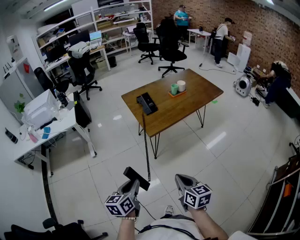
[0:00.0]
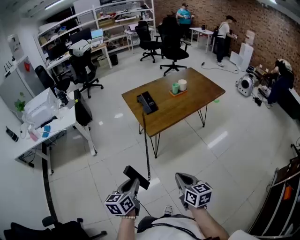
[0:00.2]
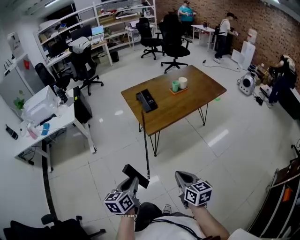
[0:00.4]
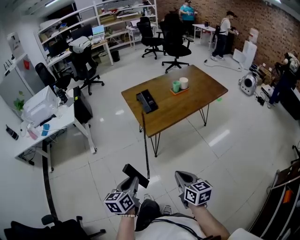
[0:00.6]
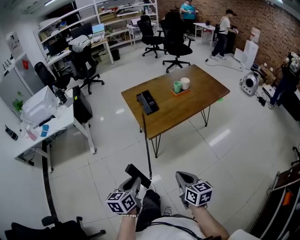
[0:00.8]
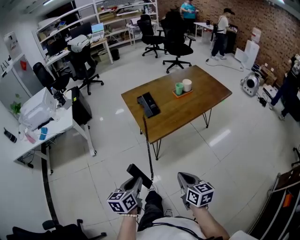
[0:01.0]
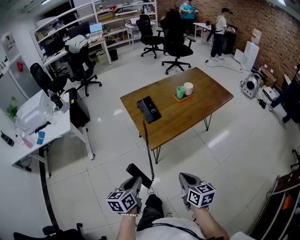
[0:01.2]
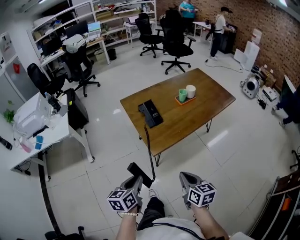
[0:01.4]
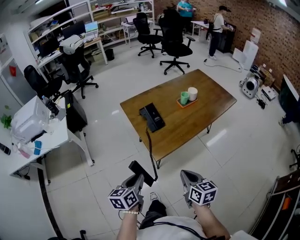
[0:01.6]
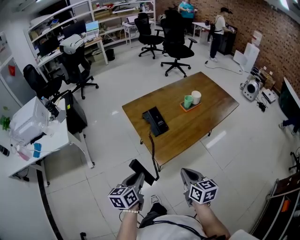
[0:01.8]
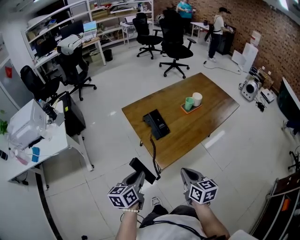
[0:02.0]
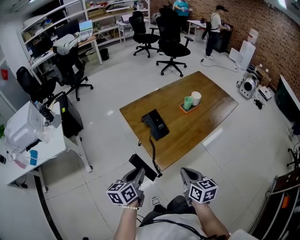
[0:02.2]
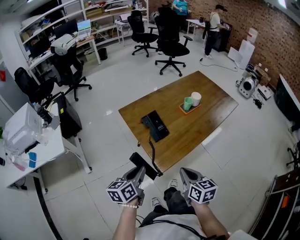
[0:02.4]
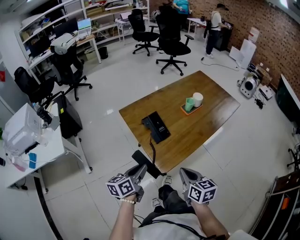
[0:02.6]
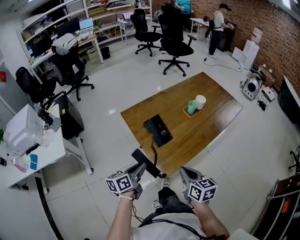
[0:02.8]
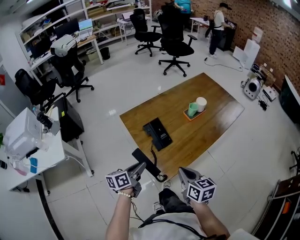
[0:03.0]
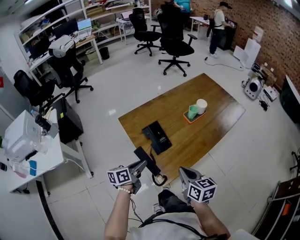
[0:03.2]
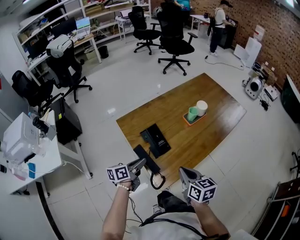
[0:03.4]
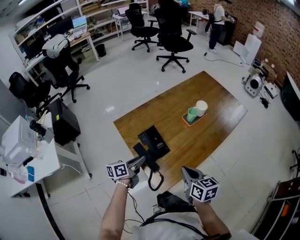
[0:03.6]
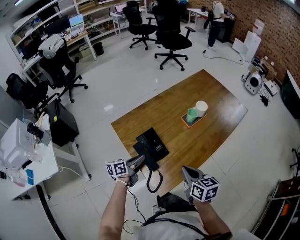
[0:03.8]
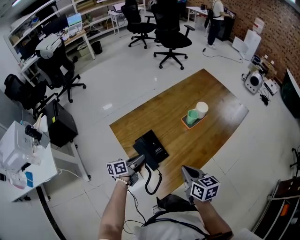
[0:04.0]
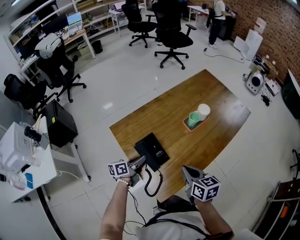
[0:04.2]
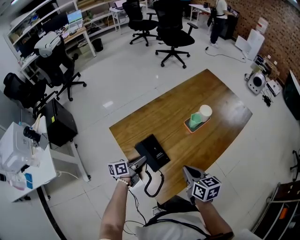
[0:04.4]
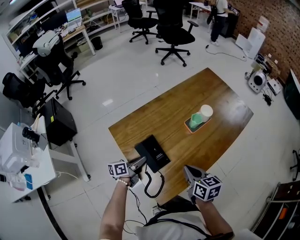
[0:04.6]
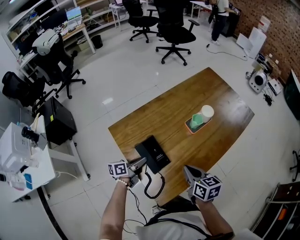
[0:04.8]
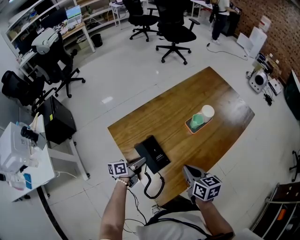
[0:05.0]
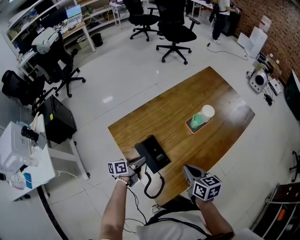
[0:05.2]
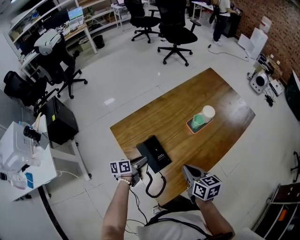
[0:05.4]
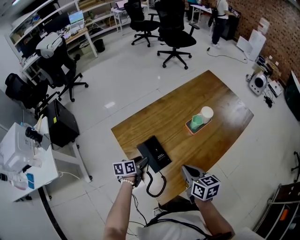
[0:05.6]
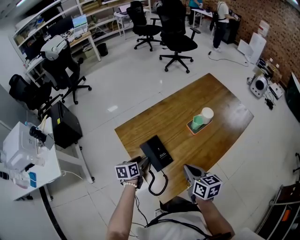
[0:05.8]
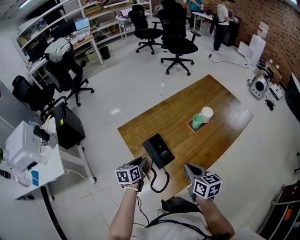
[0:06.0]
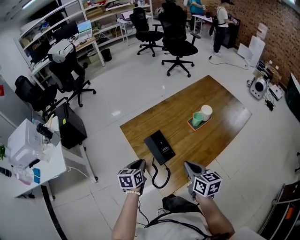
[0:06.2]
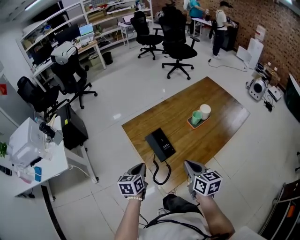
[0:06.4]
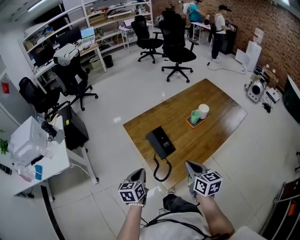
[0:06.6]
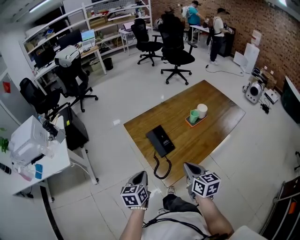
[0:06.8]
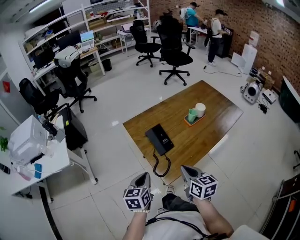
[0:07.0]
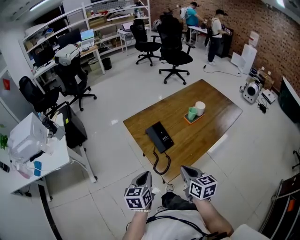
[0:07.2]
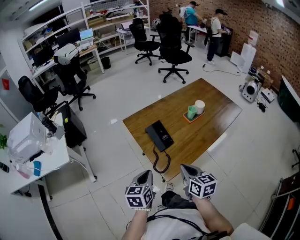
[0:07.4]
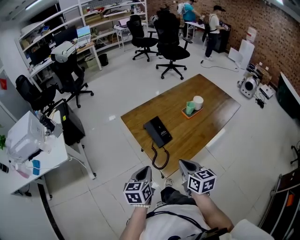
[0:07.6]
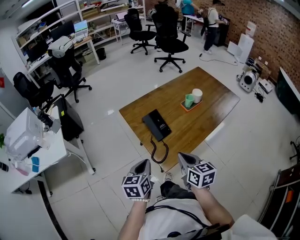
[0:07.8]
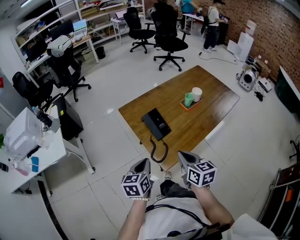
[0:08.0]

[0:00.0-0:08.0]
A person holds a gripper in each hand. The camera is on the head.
0:00.0 to 0:01.6: The grippers both shift forward by roughly 25 cm.
0:01.6 to 0:03.2: Both grippers travel together forward, about 20 cm. The left gripper swivels some 20 degrees.
0:03.2 to 0:04.8: The right gripper travels forward by about 15 cm, while the left gripper heads forward and downward, covering some 15 cm.
0:04.8 to 0:06.4: The left gripper heads backward and upward, covering about 15 cm, turns by some 40 degrees, and opens, then closes once more. Meanwhile the right gripper moves backward and upward, roughly 10 cm.
0:06.4 to 0:08.0: The two grippers go approximately 10 cm backward.

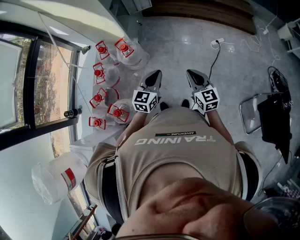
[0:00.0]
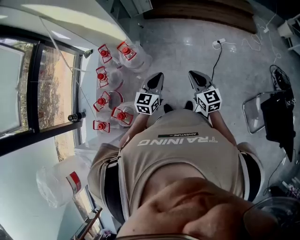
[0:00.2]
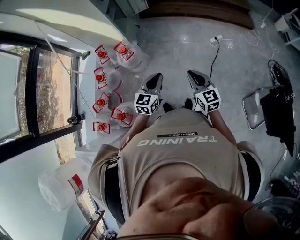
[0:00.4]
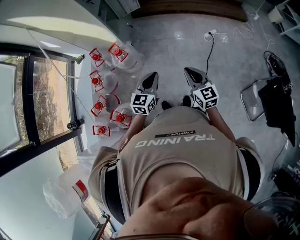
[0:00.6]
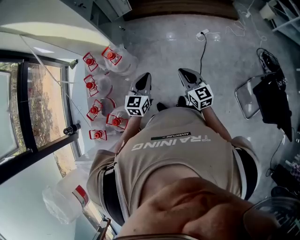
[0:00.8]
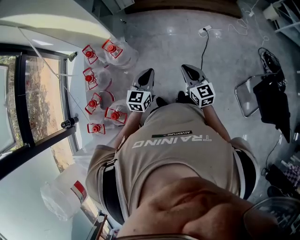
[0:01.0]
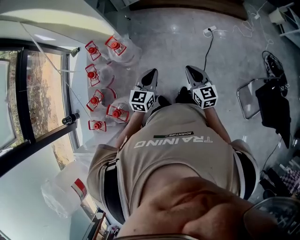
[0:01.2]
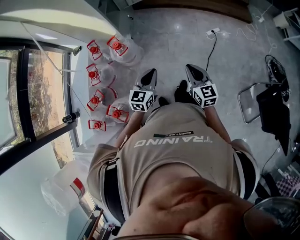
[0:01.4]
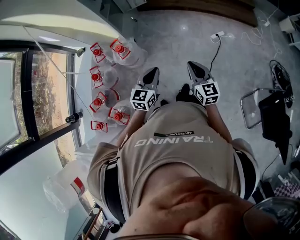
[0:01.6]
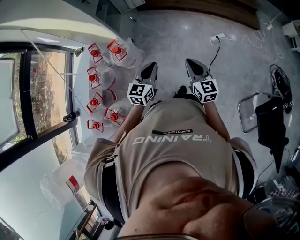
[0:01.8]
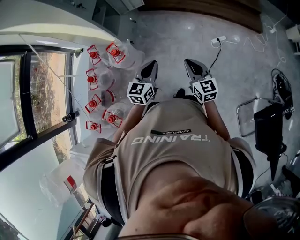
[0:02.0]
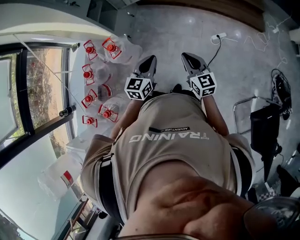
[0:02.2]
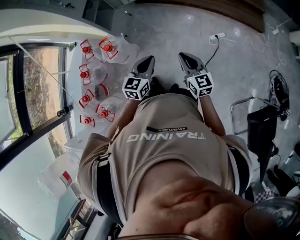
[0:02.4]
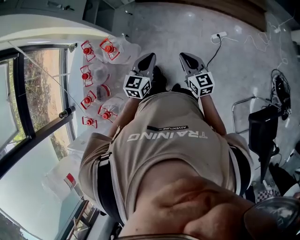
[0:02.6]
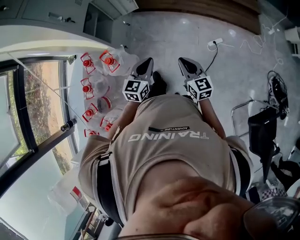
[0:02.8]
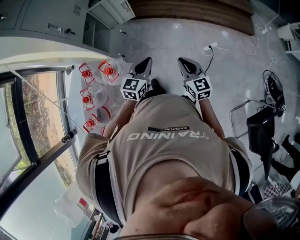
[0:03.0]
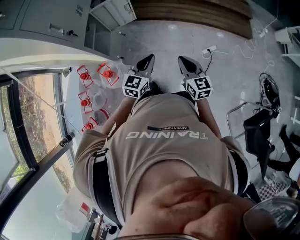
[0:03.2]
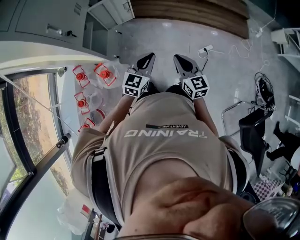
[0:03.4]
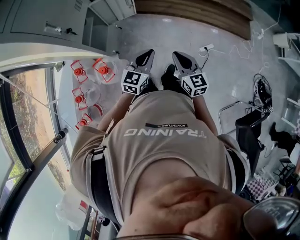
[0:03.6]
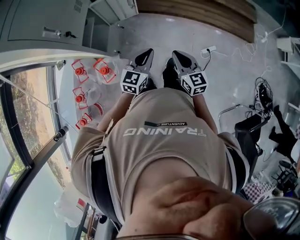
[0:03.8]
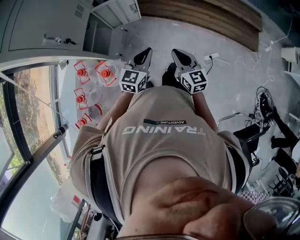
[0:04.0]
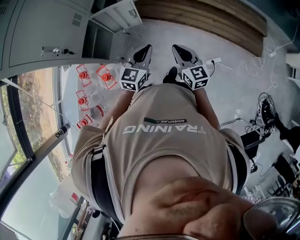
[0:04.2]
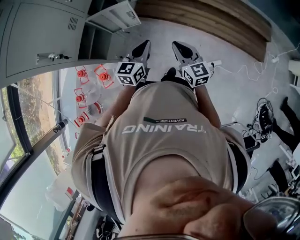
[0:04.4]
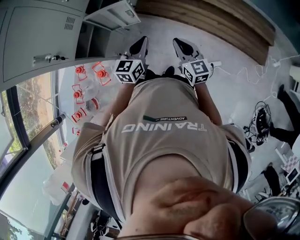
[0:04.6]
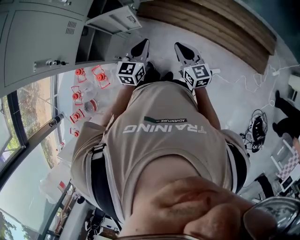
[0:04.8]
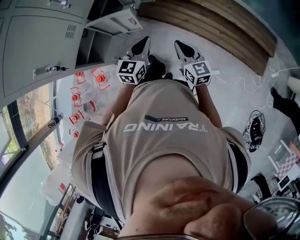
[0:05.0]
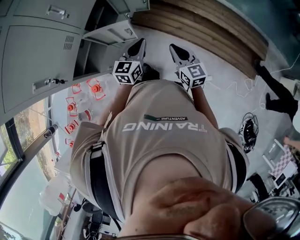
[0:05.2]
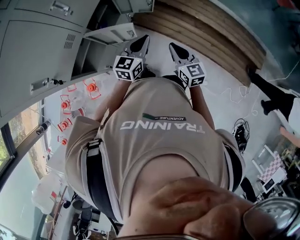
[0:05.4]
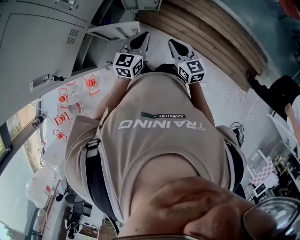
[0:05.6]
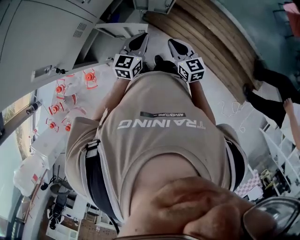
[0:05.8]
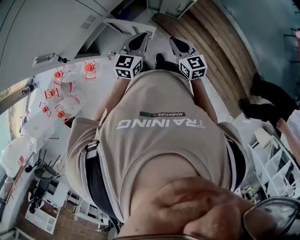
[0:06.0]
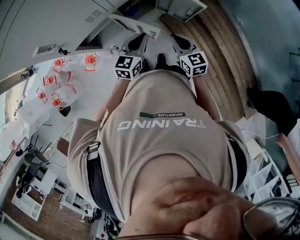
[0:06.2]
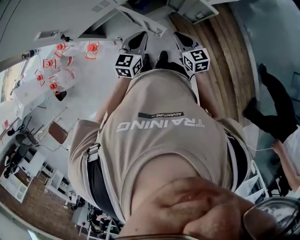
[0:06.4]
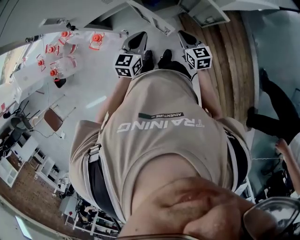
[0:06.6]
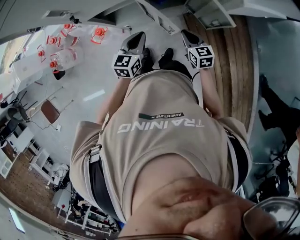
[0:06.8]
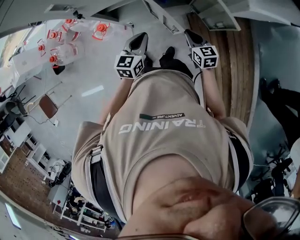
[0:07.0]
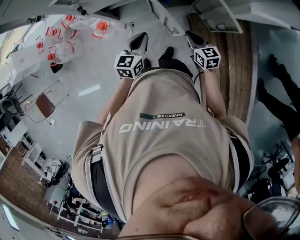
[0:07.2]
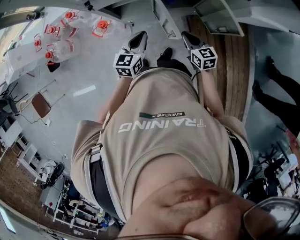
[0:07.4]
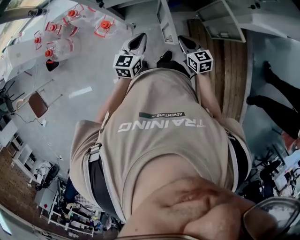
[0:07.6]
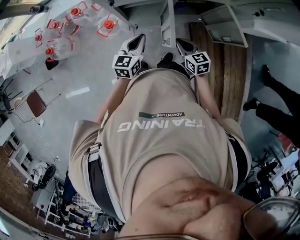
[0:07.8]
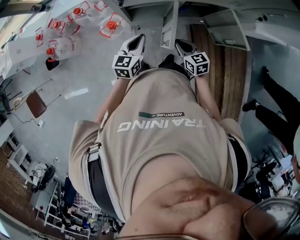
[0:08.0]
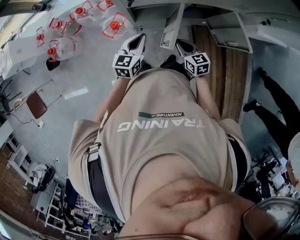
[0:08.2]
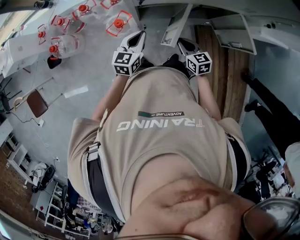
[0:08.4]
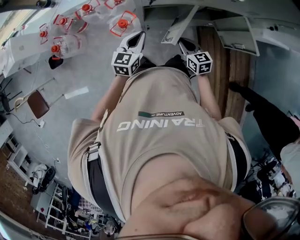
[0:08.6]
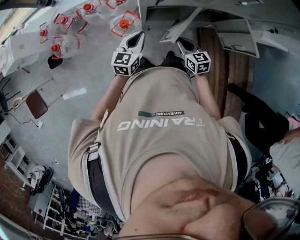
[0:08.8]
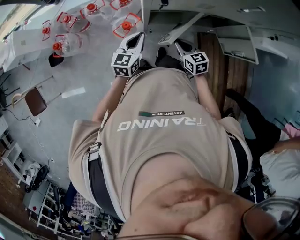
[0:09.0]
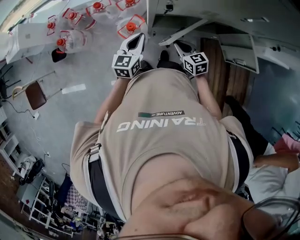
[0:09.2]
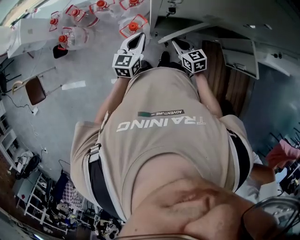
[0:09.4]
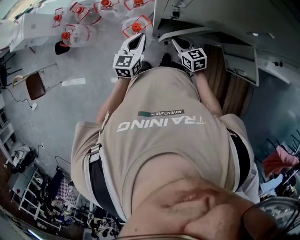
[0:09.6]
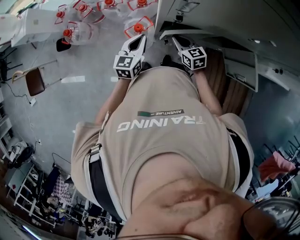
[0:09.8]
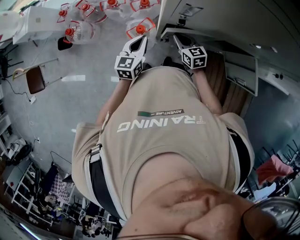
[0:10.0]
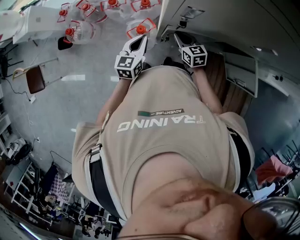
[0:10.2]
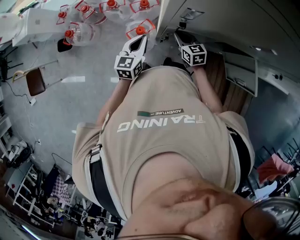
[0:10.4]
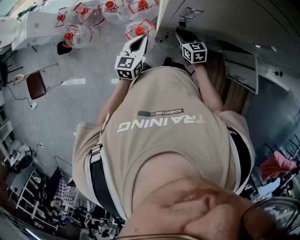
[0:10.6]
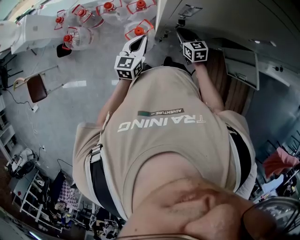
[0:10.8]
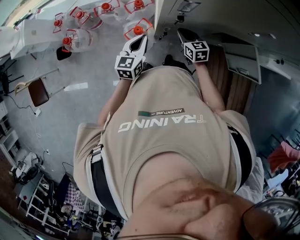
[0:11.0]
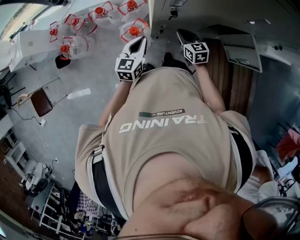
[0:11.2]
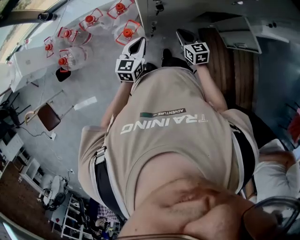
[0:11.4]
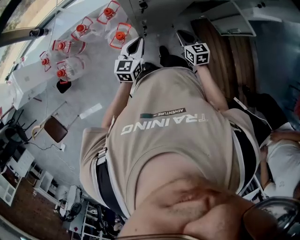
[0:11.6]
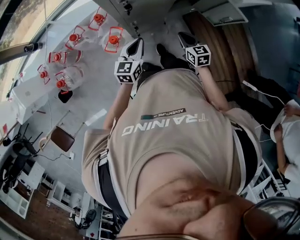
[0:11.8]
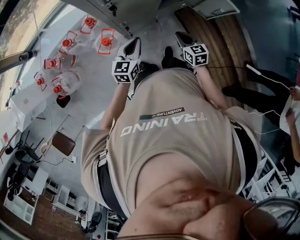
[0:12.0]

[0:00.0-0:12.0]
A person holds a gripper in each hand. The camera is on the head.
0:00.0 to 0:01.6: The grippers both shift forward by some 10 cm.
0:01.6 to 0:03.0: Both grippers move forward, roughly 25 cm.
0:03.0 to 0:04.4: The two grippers go approximately 30 cm forward.
0:04.4 to 0:06.0: The right gripper moves some 30 cm, and rotates about 30 degrees. The left gripper changes place by some 25 cm, and swivels about 30 degrees.
0:06.0 to 0:07.6: The right gripper moves roughly 15 cm, and swivels some 40 degrees; the left gripper changes place by about 20 cm, and rotates approximately 40 degrees.
0:07.6 to 0:09.0: Both grippers move to the left, roughly 20 cm.
0:09.0 to 0:10.4: The left gripper goes about 5 cm forward. The right gripper moves forward, roughly 15 cm.
0:10.4 to 0:12.0: The right gripper changes place by roughly 25 cm, and turns by some 40 degrees; the left gripper ends up about 15 cm from where it was, and rotates some 30 degrees.

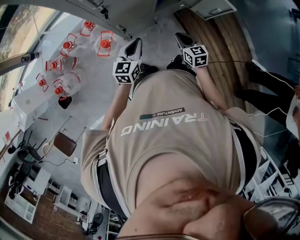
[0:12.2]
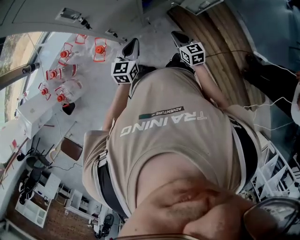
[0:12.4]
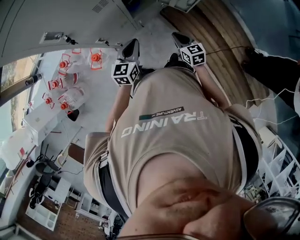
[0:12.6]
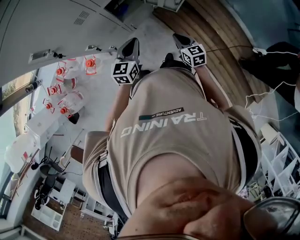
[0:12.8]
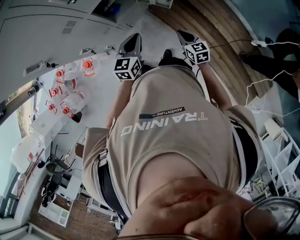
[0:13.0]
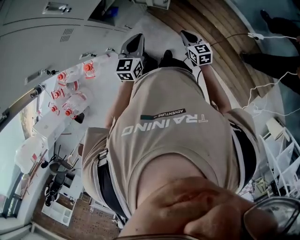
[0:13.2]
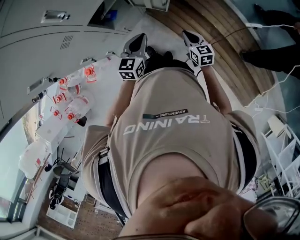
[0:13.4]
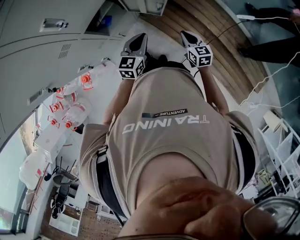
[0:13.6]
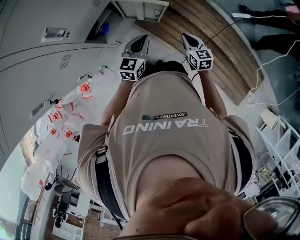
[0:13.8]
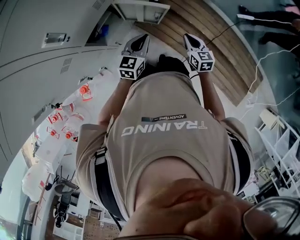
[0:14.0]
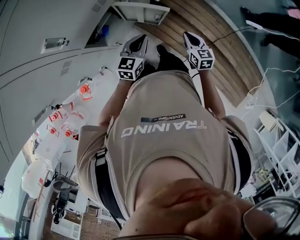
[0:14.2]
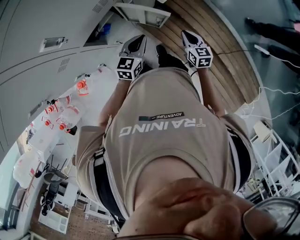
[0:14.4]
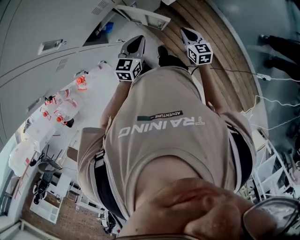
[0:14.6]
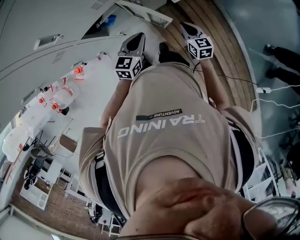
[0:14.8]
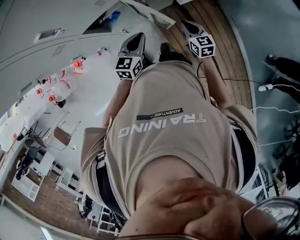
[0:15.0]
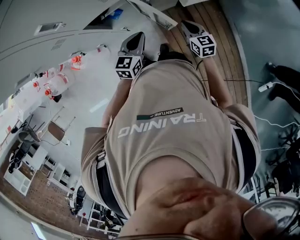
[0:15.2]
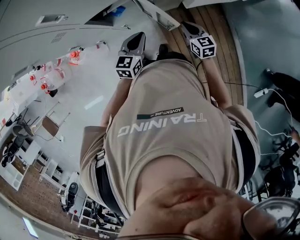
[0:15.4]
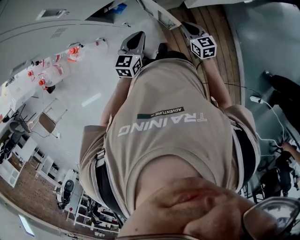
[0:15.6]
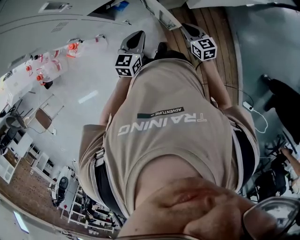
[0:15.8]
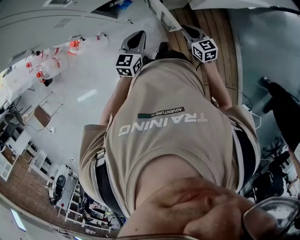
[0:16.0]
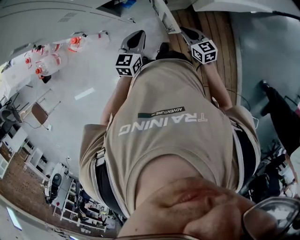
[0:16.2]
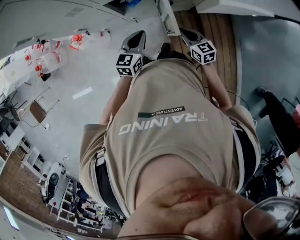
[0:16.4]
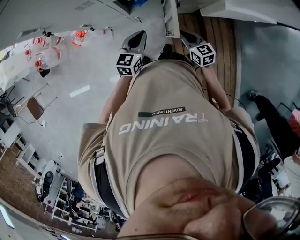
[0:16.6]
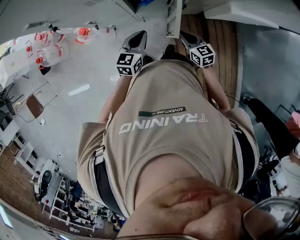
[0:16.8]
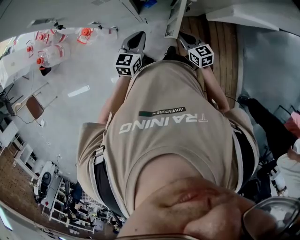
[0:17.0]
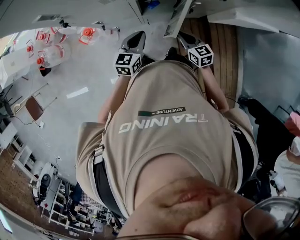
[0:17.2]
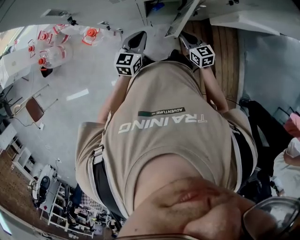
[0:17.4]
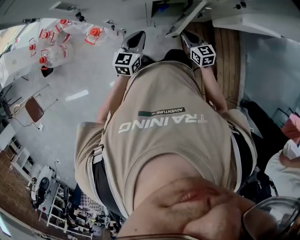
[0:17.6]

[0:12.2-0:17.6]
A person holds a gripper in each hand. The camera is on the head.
0:12.2 to 0:13.6: The left gripper heads to the right and forward, covering some 35 cm, and turns by about 20 degrees. The right gripper travels to the right by roughly 35 cm, and turns by about 20 degrees.
0:13.6 to 0:15.0: The right gripper ends up some 20 cm from where it was, and swivels some 20 degrees, while the left gripper ends up approximately 10 cm from where it was, and turns by roughly 20 degrees.
0:15.0 to 0:16.2: The two grippers go some 5 cm to the left. The right gripper turns by approximately 20 degrees.
0:16.2 to 0:17.6: Both grippers travel together to the left, roughly 20 cm.
